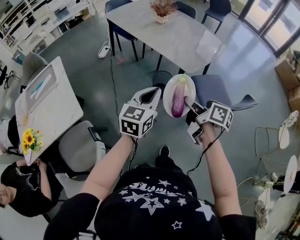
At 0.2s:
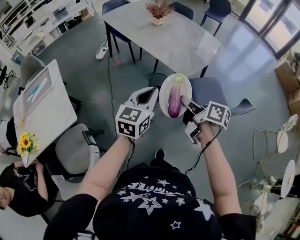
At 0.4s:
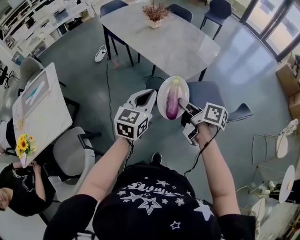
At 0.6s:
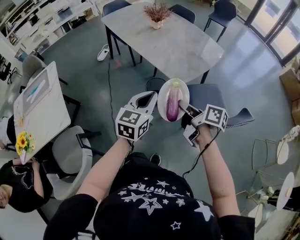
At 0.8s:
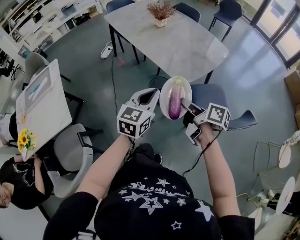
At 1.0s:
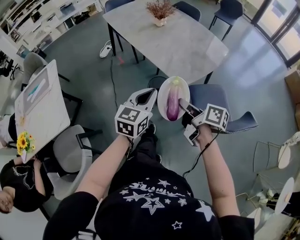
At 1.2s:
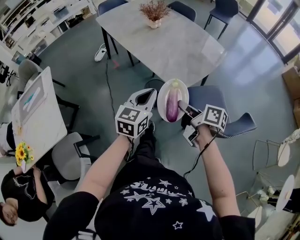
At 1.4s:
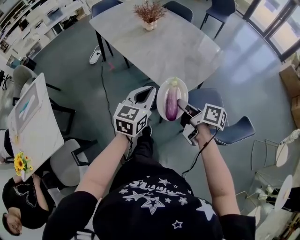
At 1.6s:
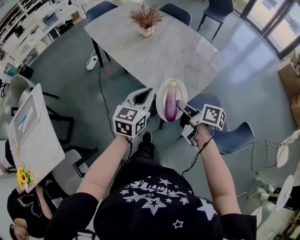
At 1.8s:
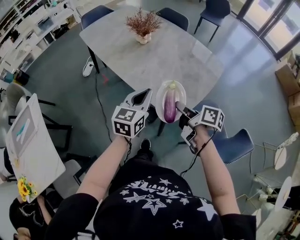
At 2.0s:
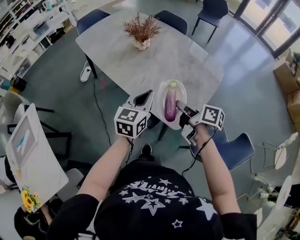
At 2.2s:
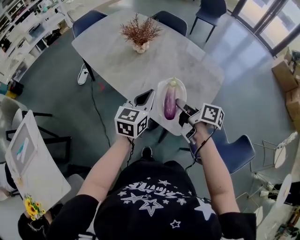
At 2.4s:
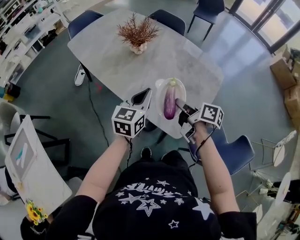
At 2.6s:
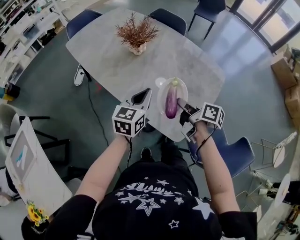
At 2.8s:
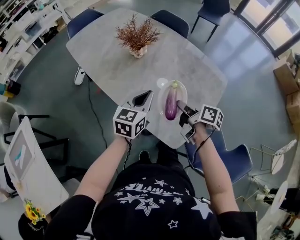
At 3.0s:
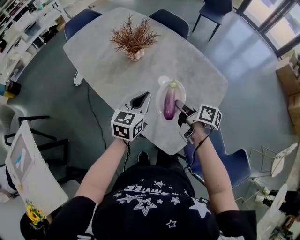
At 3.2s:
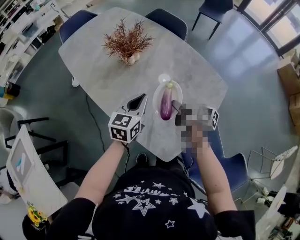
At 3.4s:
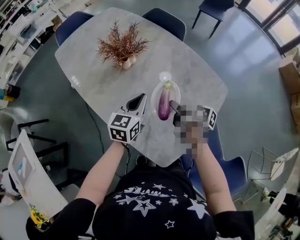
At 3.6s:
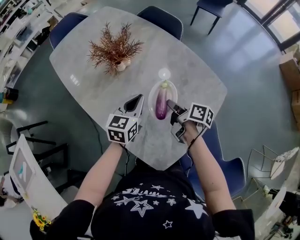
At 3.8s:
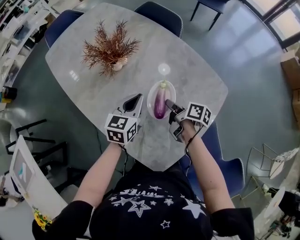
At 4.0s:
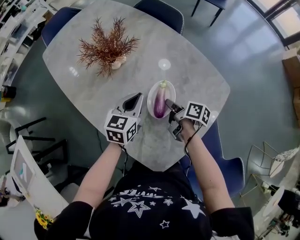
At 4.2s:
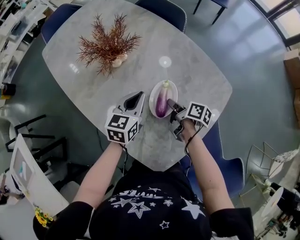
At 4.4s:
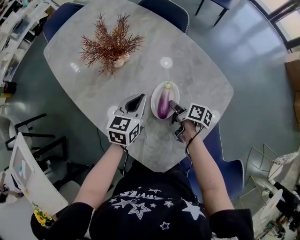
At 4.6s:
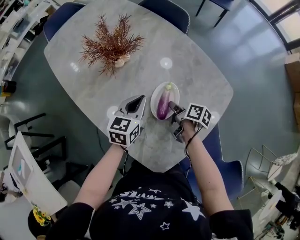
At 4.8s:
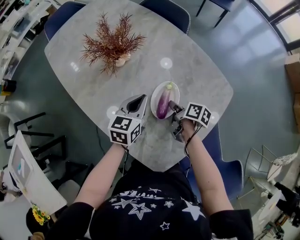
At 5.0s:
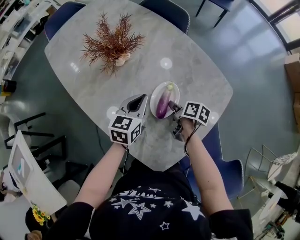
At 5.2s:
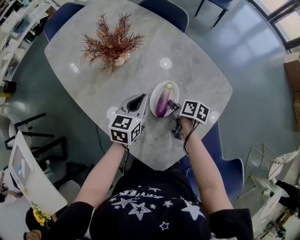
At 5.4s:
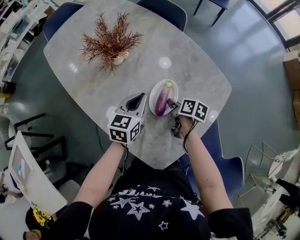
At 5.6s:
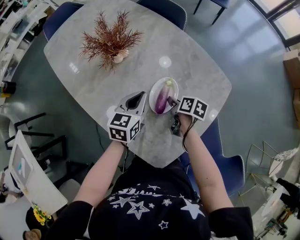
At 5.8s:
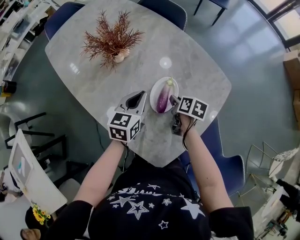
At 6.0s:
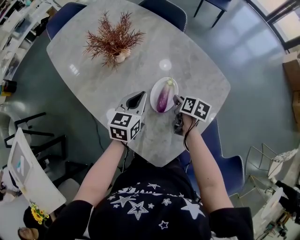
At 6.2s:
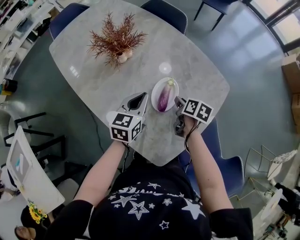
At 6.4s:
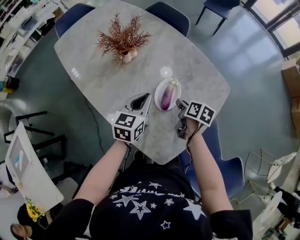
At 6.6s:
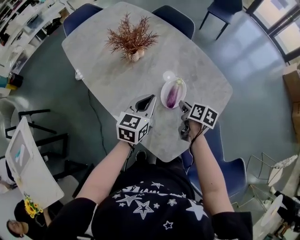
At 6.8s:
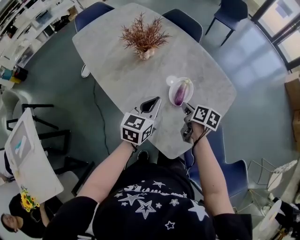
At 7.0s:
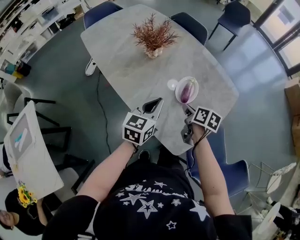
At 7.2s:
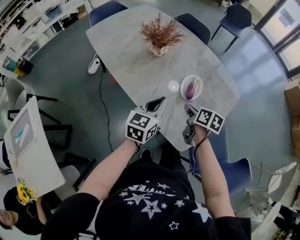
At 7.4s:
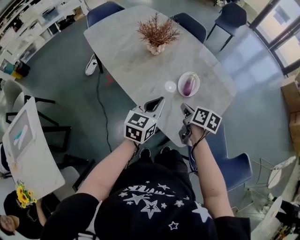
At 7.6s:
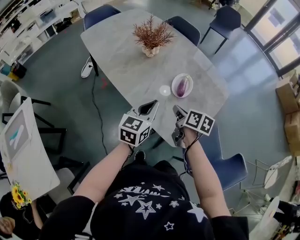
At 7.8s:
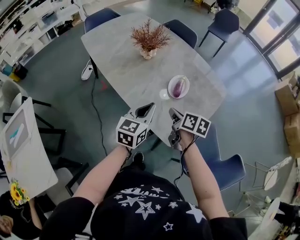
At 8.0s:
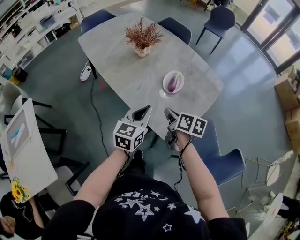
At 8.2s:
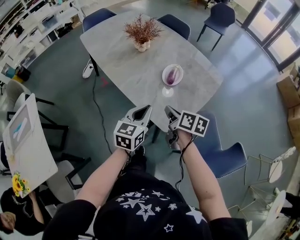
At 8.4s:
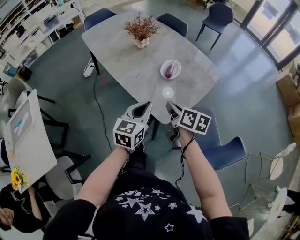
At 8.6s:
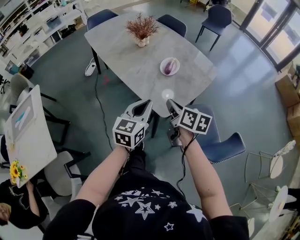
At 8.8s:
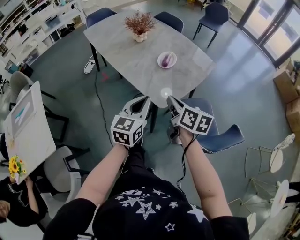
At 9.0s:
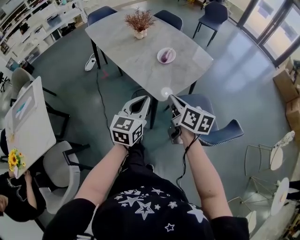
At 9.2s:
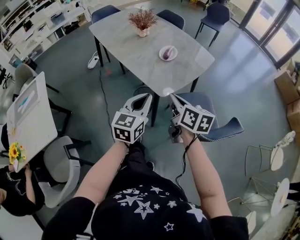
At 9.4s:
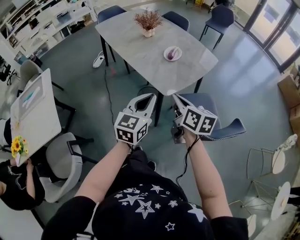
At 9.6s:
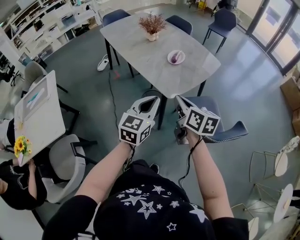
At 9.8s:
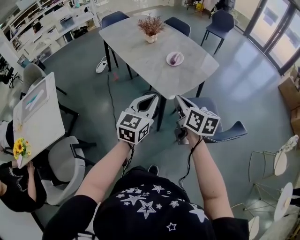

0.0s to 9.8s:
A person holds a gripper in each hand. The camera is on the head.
0.0s to 1.4s: The left gripper reaches roughly 10 cm backward, then returns; the right gripper is displaced backward by some 5 cm.
1.4s to 2.8s: The left gripper reaches about 20 cm backward, then returns. Meanwhile the right gripper moves backward, roughly 10 cm.
2.8s to 4.2s: Both grippers move forward, downward and to the right, approximately 20 cm.
4.2s to 5.6s: The right gripper turns by roughly 20 degrees.
5.6s to 7.0s: The grippers both shift backward, upward and to the left by about 15 cm.
7.0s to 8.4s: The right gripper shifts about 20 cm backward and upward, while the left gripper is displaced backward by roughly 20 cm.
8.4s to 9.8s: The right gripper is displaced backward and upward by some 20 cm; the left gripper is displaced backward by approximately 20 cm.

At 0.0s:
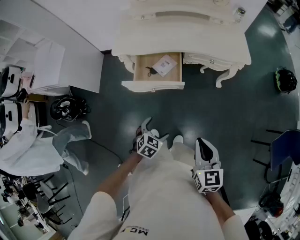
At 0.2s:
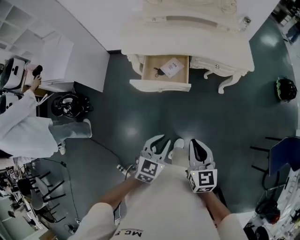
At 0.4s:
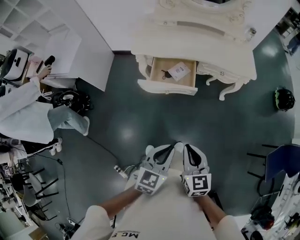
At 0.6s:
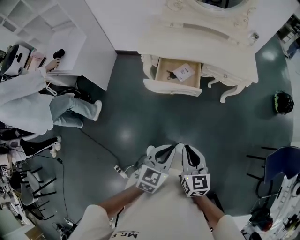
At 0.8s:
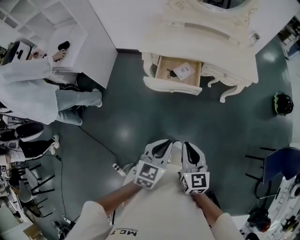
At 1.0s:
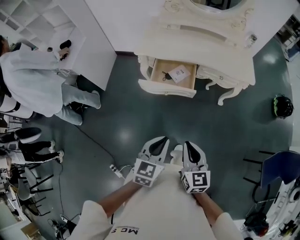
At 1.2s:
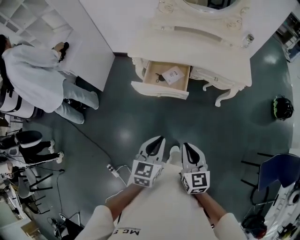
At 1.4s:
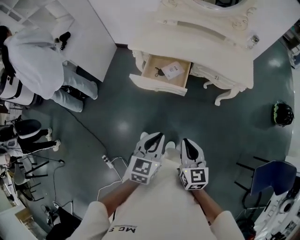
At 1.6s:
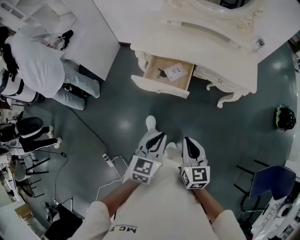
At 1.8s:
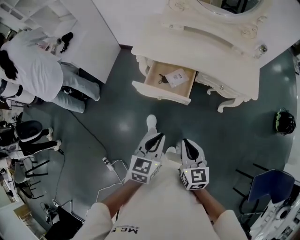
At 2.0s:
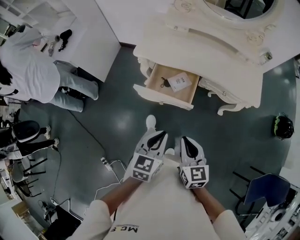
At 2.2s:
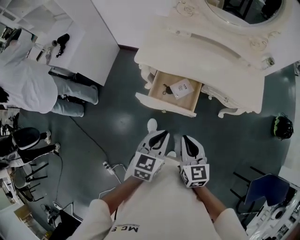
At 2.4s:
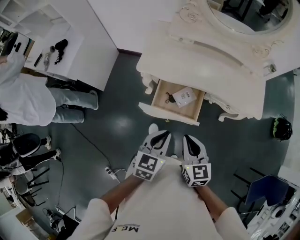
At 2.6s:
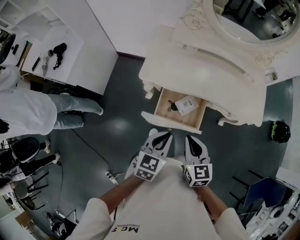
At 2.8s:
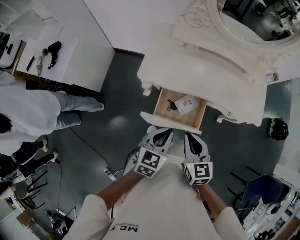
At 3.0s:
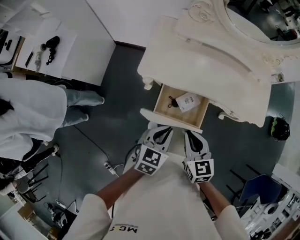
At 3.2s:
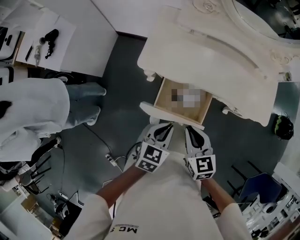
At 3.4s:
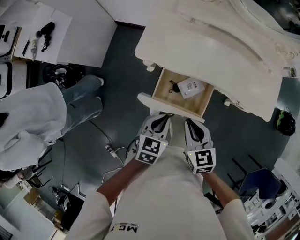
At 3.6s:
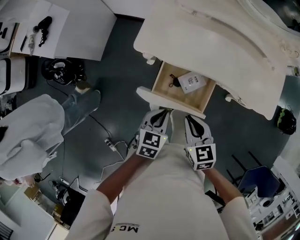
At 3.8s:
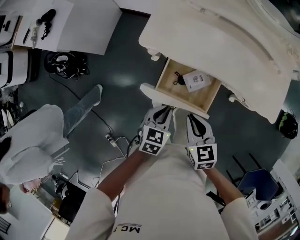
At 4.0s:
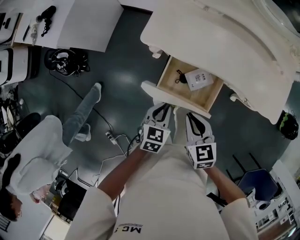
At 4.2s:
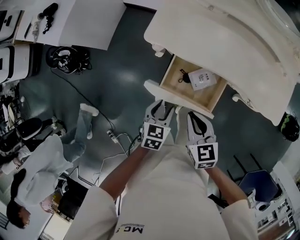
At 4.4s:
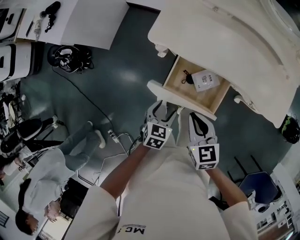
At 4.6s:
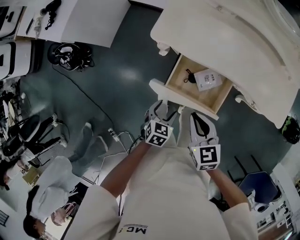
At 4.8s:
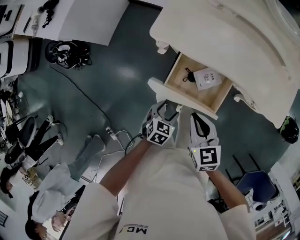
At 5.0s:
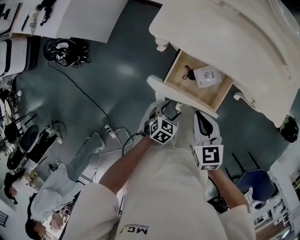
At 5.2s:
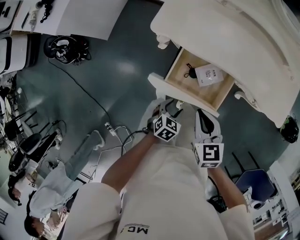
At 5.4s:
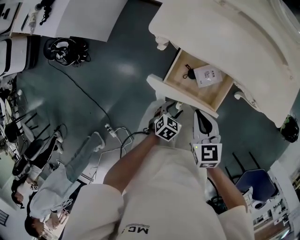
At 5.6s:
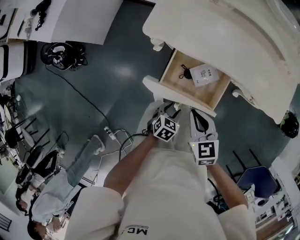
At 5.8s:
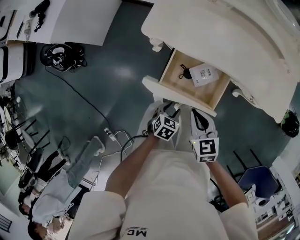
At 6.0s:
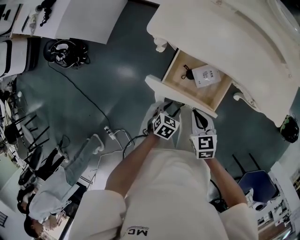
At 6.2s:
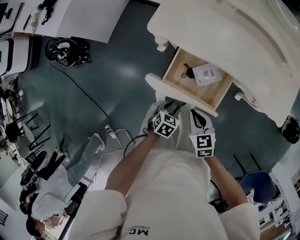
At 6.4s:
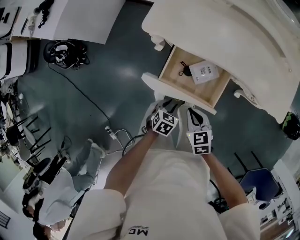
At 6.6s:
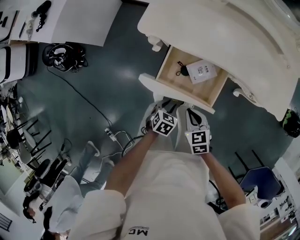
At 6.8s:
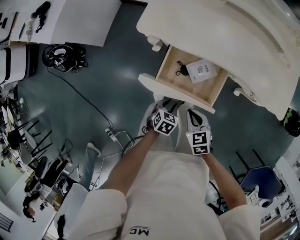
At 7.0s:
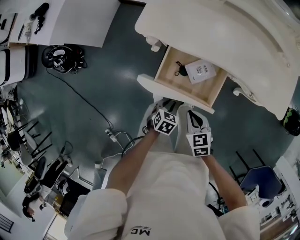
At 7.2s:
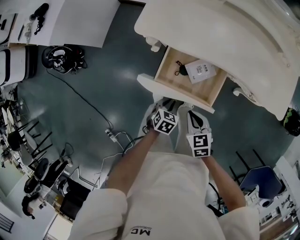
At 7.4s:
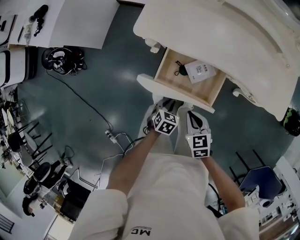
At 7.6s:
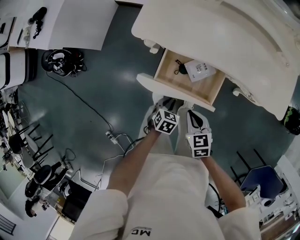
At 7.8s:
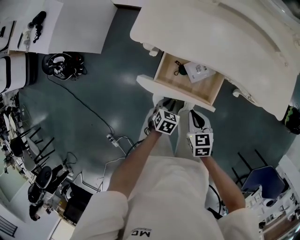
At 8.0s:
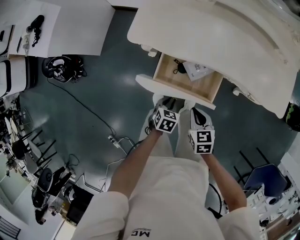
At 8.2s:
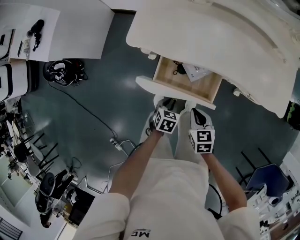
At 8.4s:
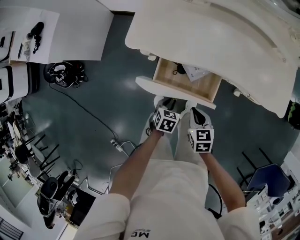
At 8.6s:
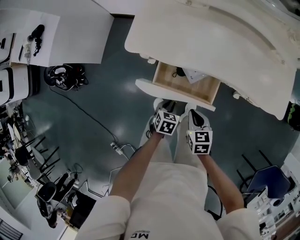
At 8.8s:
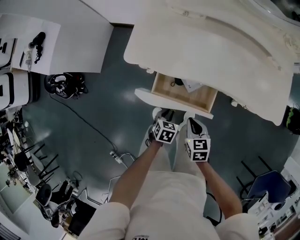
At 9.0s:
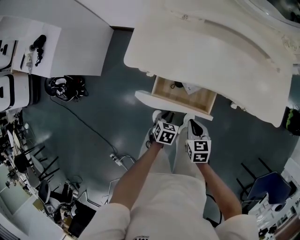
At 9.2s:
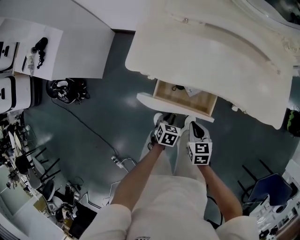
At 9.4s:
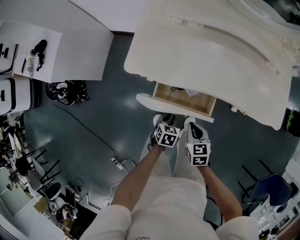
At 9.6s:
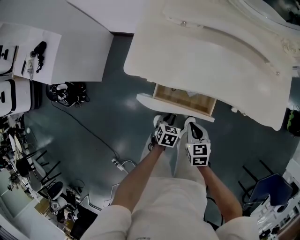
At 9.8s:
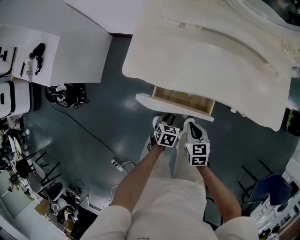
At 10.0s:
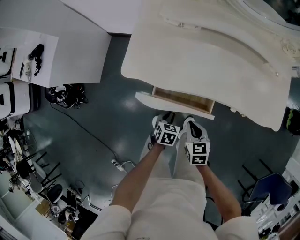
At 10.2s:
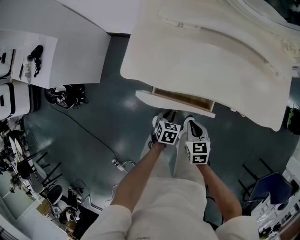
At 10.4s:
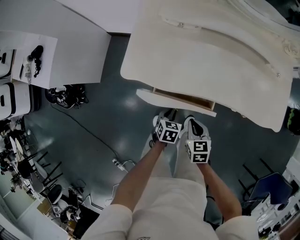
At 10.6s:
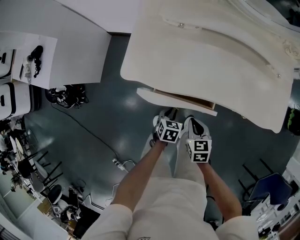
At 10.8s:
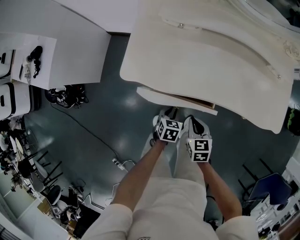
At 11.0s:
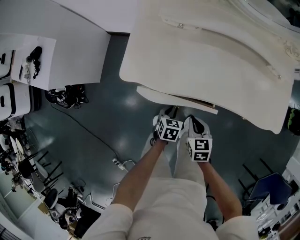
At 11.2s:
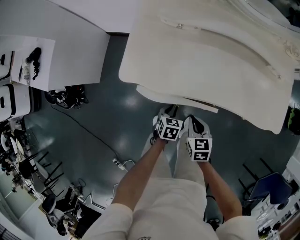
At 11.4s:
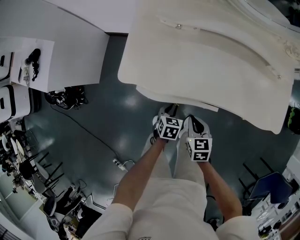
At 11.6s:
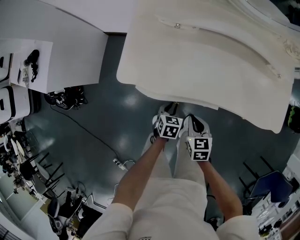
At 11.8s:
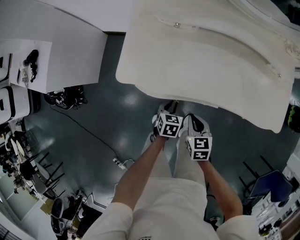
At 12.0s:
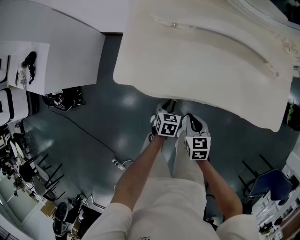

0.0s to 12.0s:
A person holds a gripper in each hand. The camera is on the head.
0.0s to 1.6s: The left gripper goes some 20 cm upward, turns by about 40 degrees, and closes its fingers; the right gripper travels to the left and back again, about 15 cm each way.
1.6s to 3.0s: Both grippers travel together forward and to the left, some 30 cm.
3.0s to 4.4s: The left gripper moves downward, approximately 15 cm, and opens up; the right gripper heads downward, covering approximately 10 cm.
4.4s to 6.0s: The right gripper travels downward by some 10 cm, while the left gripper shifts some 10 cm downward and to the right.
6.0s to 7.6s: The left gripper closes its fingers.
7.6s to 9.0s: The two grippers go roughly 5 cm forward.
9.0s to 10.4s: The left gripper goes about 5 cm forward.
10.4s to 12.0s: The left gripper moves forward, about 5 cm.

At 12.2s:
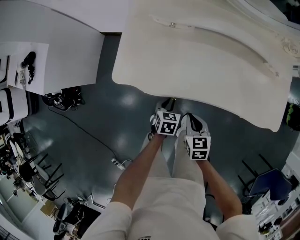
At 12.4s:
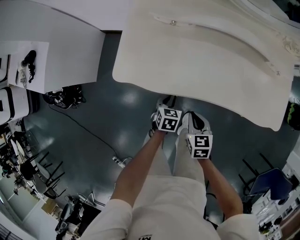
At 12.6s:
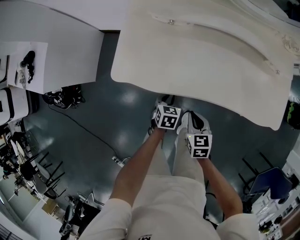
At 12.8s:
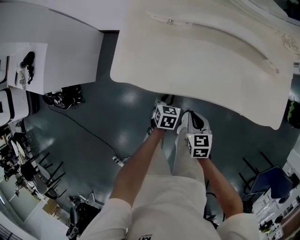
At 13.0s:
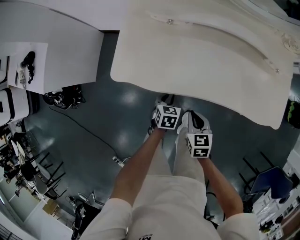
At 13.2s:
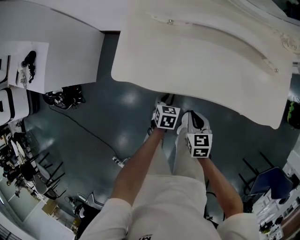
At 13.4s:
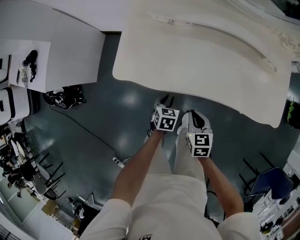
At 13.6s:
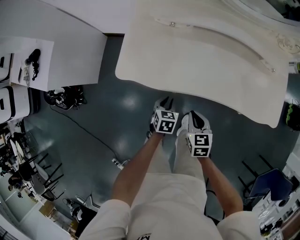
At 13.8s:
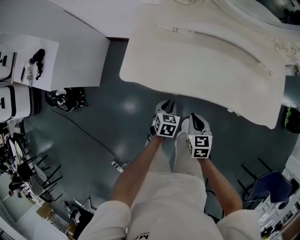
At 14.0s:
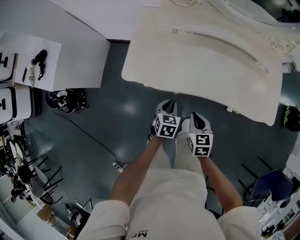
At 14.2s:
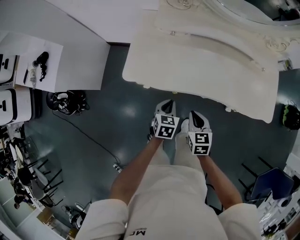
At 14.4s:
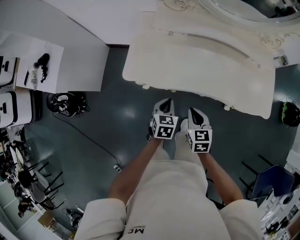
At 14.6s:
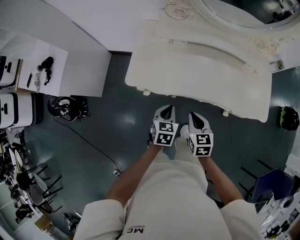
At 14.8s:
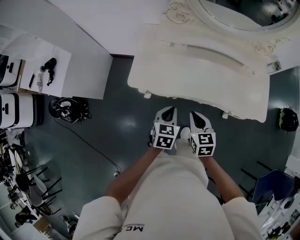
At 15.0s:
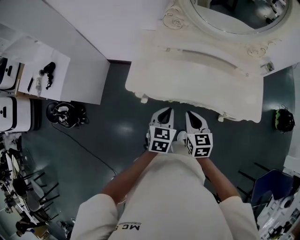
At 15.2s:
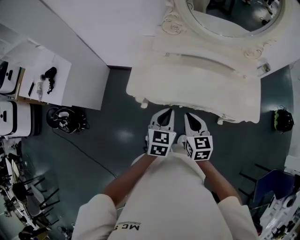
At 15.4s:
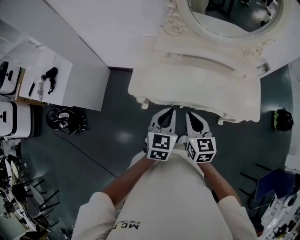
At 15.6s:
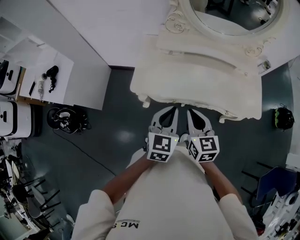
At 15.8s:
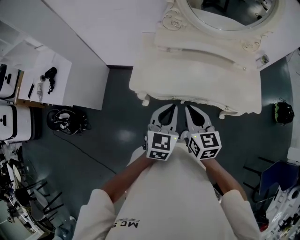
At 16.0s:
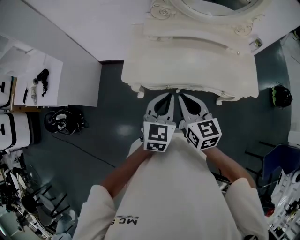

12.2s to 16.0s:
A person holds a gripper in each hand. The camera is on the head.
12.2s to 13.4s: The grippers move only a little.
13.4s to 14.8s: Both grippers move upward, about 20 cm.
14.8s to 16.0s: The right gripper is displaced upward and to the left by roughly 15 cm; the left gripper shifts approximately 15 cm upward, and turns by roughly 20 degrees.
